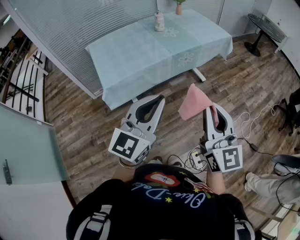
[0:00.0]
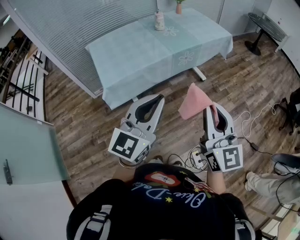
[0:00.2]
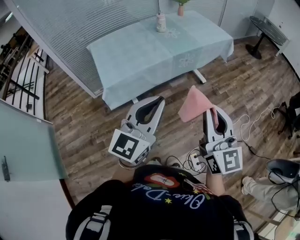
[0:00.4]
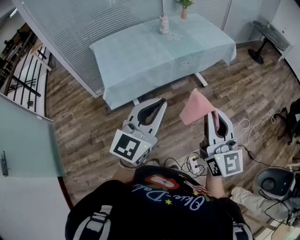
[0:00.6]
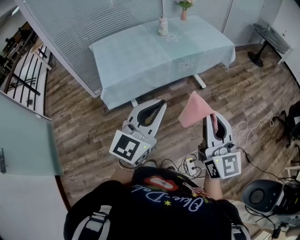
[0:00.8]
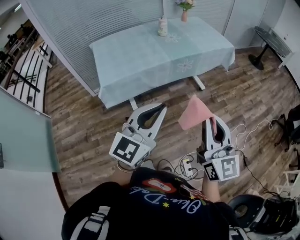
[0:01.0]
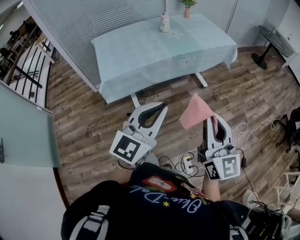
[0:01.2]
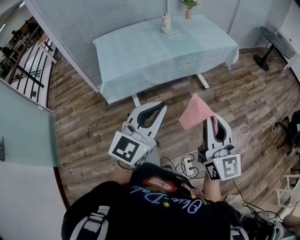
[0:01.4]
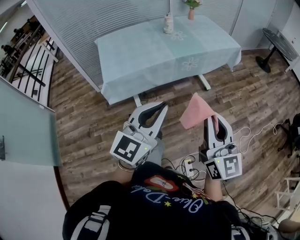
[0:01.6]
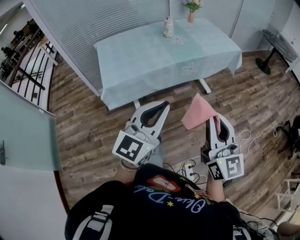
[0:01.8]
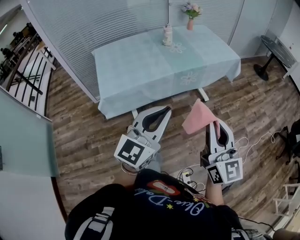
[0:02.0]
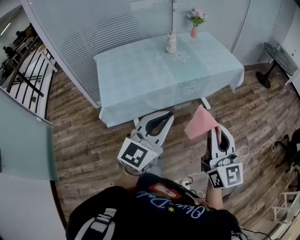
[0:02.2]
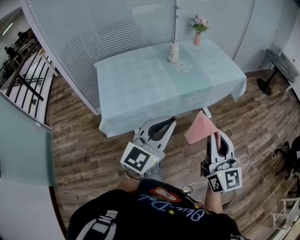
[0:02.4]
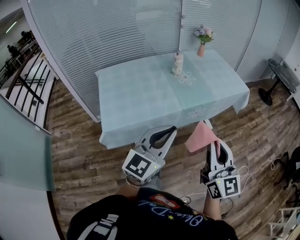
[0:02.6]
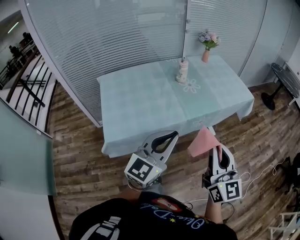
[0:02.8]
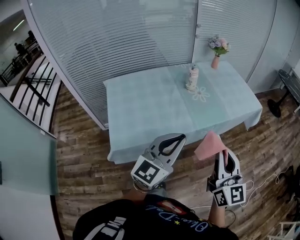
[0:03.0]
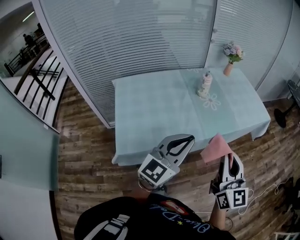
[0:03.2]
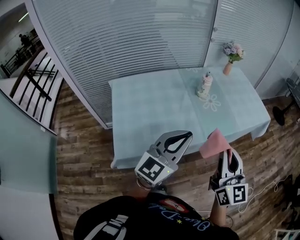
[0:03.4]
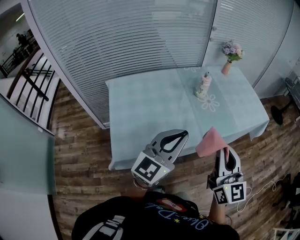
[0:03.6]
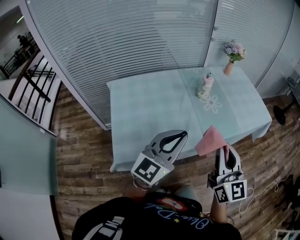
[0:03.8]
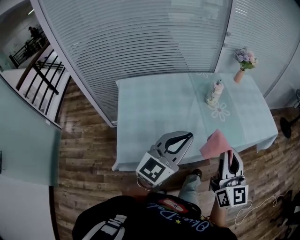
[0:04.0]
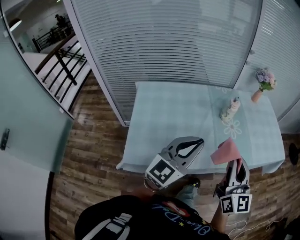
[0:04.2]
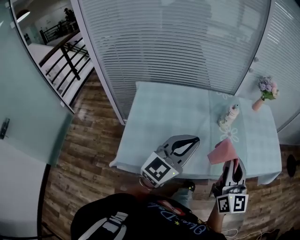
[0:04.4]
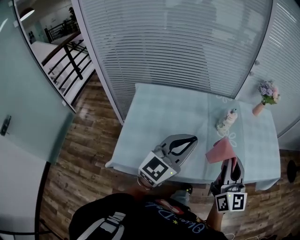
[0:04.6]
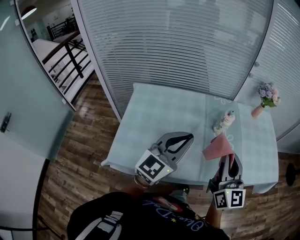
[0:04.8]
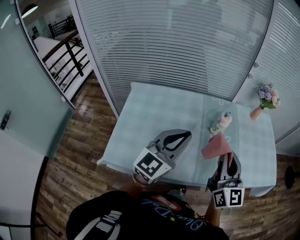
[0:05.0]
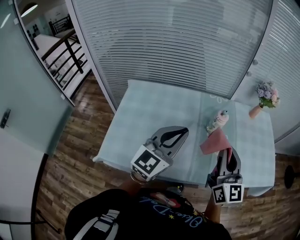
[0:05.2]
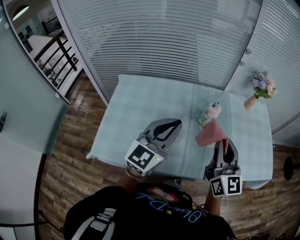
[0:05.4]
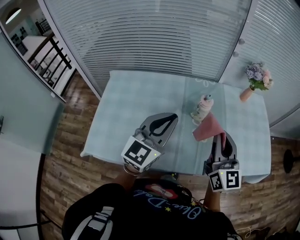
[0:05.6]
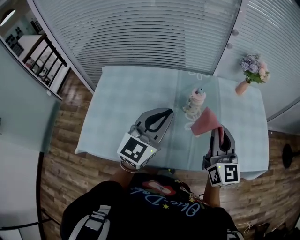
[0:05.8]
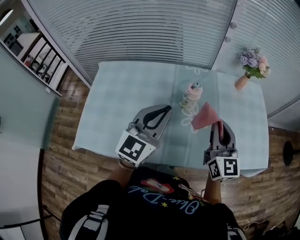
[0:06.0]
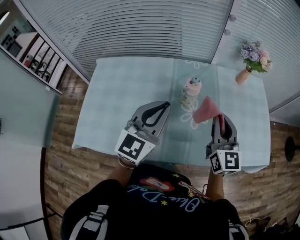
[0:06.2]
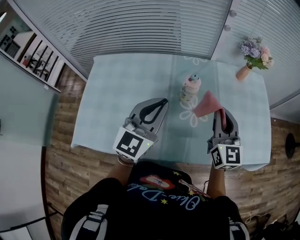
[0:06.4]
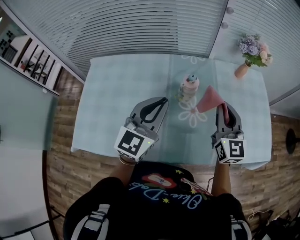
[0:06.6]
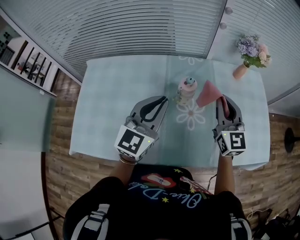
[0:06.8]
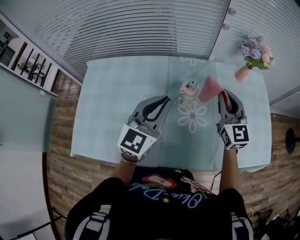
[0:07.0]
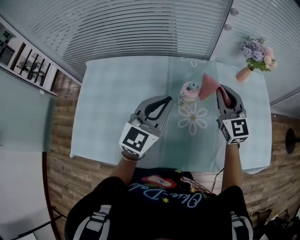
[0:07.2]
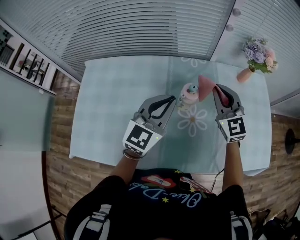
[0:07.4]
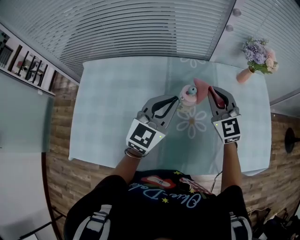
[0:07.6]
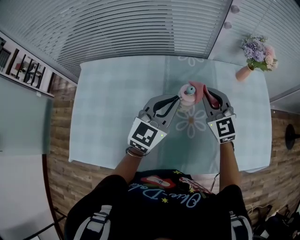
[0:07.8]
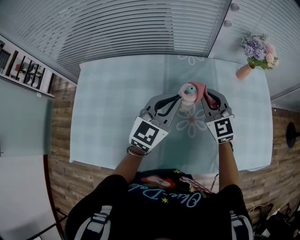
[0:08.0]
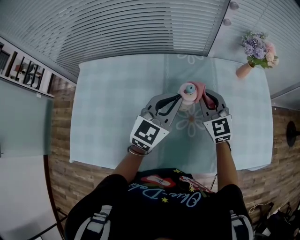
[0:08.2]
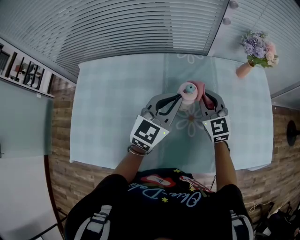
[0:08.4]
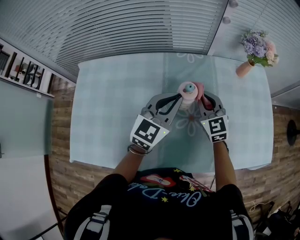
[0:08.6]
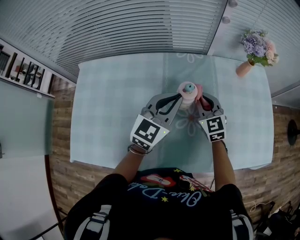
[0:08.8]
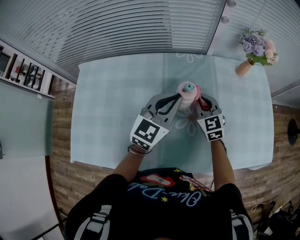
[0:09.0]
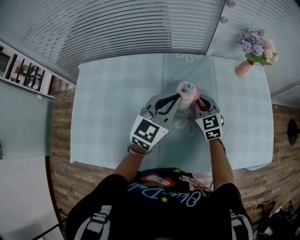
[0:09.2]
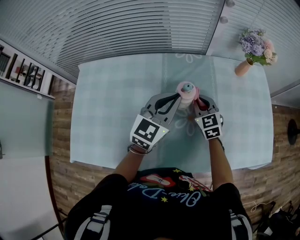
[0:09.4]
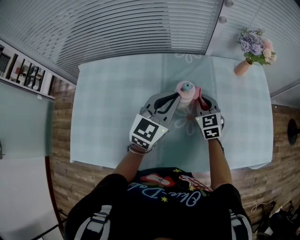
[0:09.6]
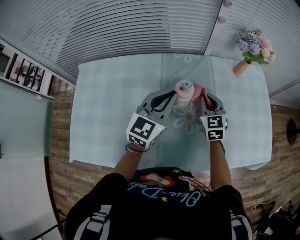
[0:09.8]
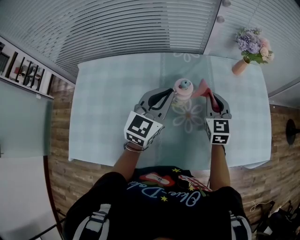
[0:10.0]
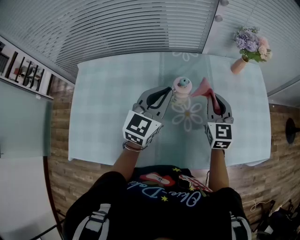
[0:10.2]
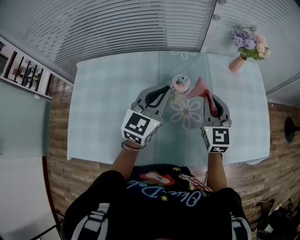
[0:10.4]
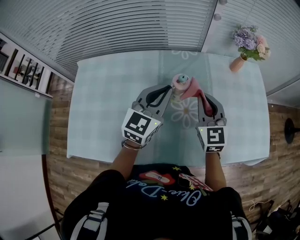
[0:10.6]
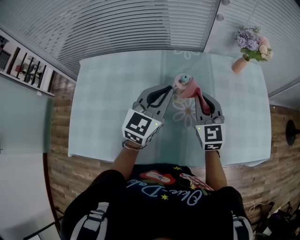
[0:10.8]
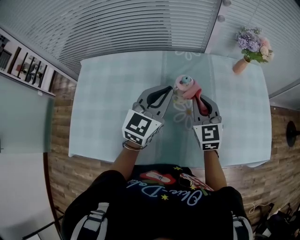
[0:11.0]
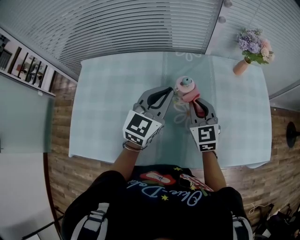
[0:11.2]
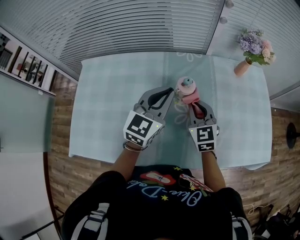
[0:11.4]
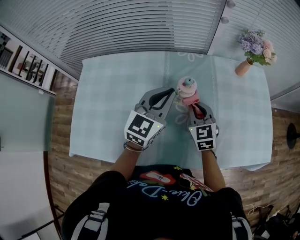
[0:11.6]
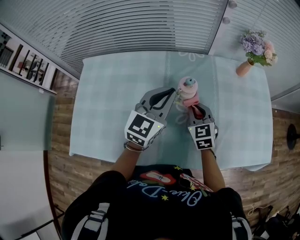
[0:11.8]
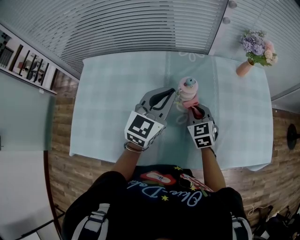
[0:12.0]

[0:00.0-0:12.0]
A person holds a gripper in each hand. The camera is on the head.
0:00.0 to 0:01.6: The grippers both shift to the right by roughly 5 cm.
0:01.6 to 0:03.0: The grippers both shift forward by approximately 30 cm.
0:03.0 to 0:04.4: The left gripper heads forward and to the left, covering approximately 20 cm; the right gripper moves forward, roughly 20 cm.
0:04.4 to 0:06.0: The grippers both shift forward and to the right by about 20 cm.
0:06.0 to 0:07.6: The left gripper moves forward and downward, roughly 15 cm. Meanwhile the right gripper moves forward, approximately 15 cm, and turns by about 30 degrees.
0:07.6 to 0:09.0: The right gripper heads downward, covering approximately 10 cm.
0:09.0 to 0:10.4: The right gripper shifts roughly 10 cm upward and to the right.
0:10.4 to 0:12.0: The right gripper shifts some 15 cm downward and to the left, and turns by roughly 20 degrees.

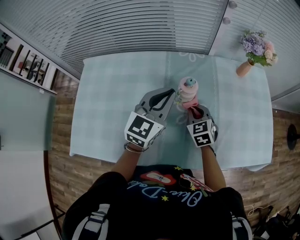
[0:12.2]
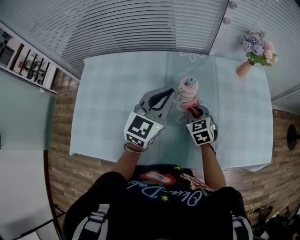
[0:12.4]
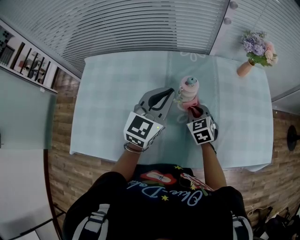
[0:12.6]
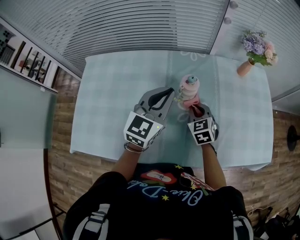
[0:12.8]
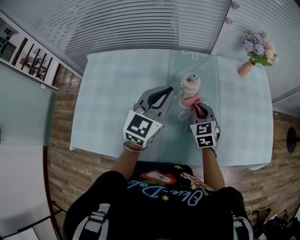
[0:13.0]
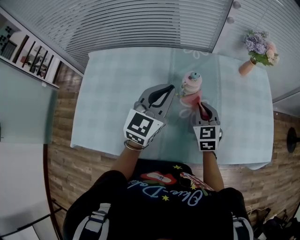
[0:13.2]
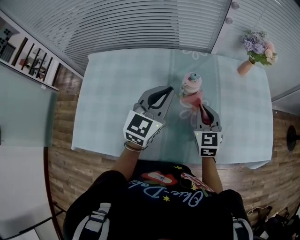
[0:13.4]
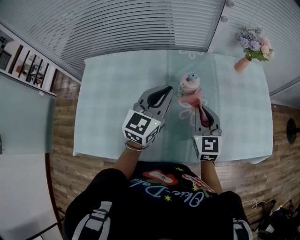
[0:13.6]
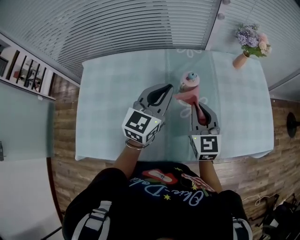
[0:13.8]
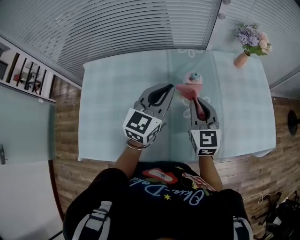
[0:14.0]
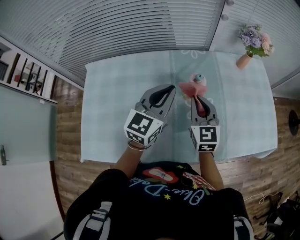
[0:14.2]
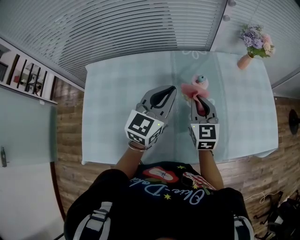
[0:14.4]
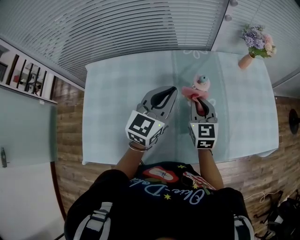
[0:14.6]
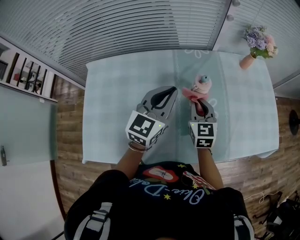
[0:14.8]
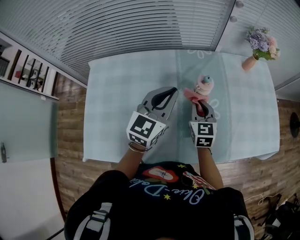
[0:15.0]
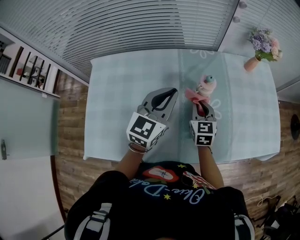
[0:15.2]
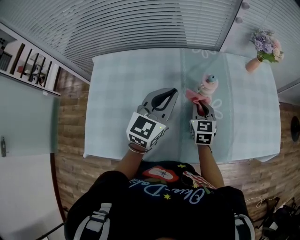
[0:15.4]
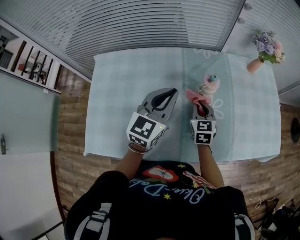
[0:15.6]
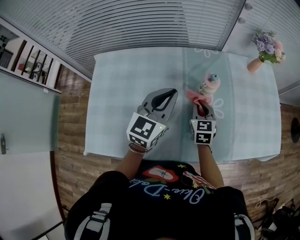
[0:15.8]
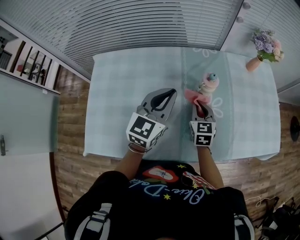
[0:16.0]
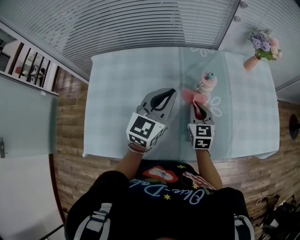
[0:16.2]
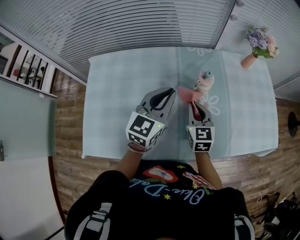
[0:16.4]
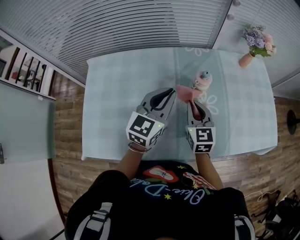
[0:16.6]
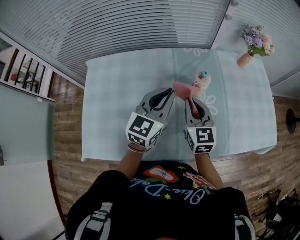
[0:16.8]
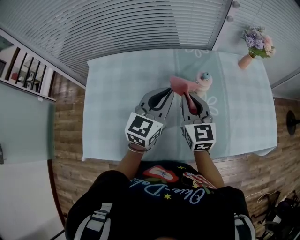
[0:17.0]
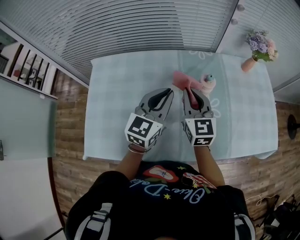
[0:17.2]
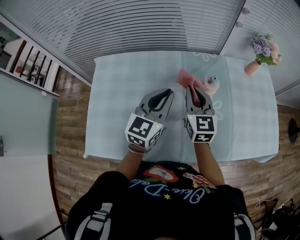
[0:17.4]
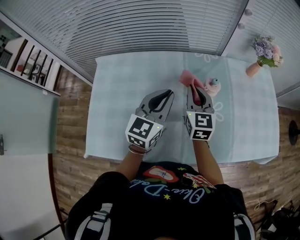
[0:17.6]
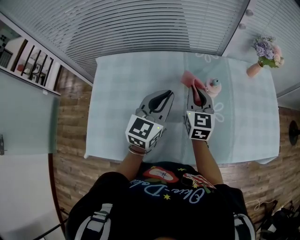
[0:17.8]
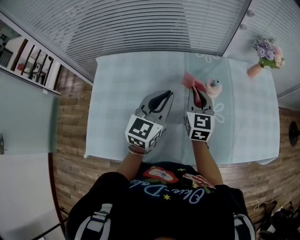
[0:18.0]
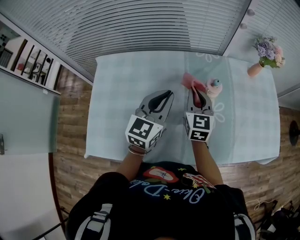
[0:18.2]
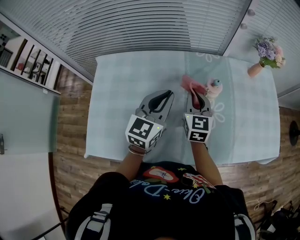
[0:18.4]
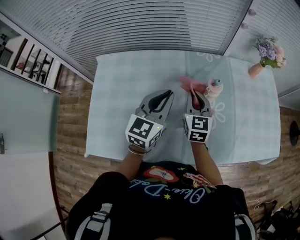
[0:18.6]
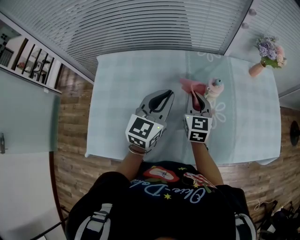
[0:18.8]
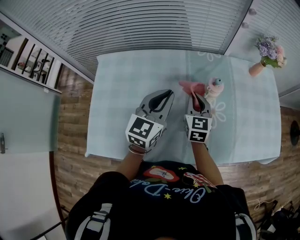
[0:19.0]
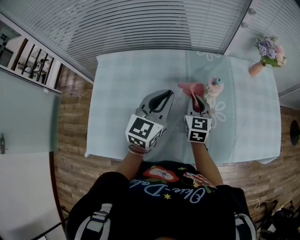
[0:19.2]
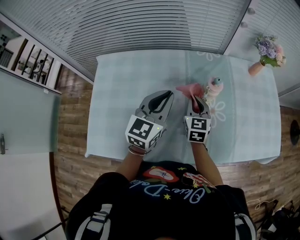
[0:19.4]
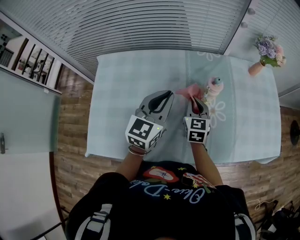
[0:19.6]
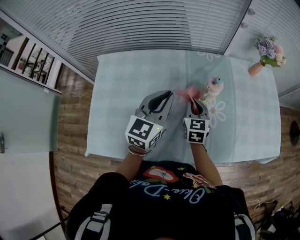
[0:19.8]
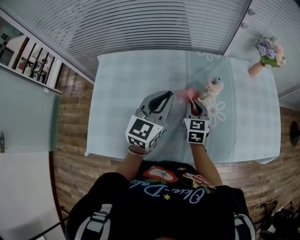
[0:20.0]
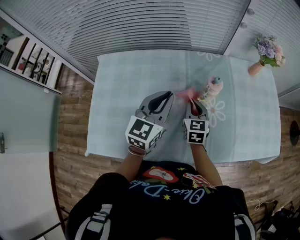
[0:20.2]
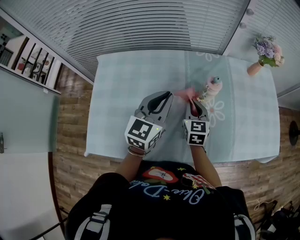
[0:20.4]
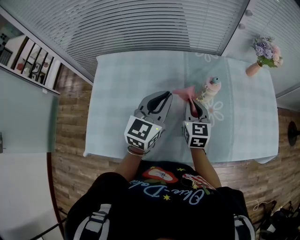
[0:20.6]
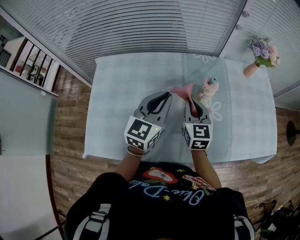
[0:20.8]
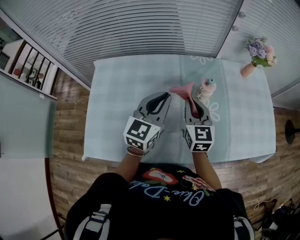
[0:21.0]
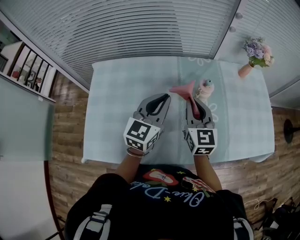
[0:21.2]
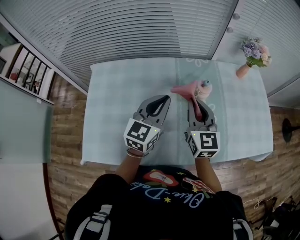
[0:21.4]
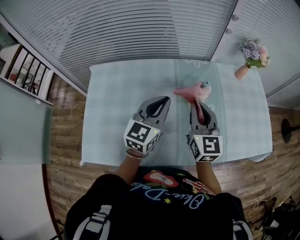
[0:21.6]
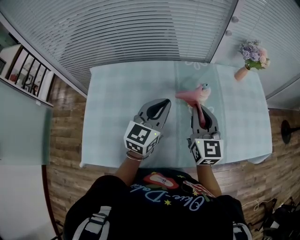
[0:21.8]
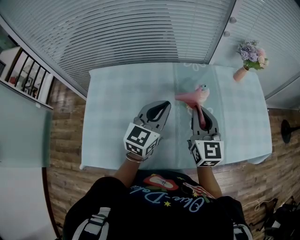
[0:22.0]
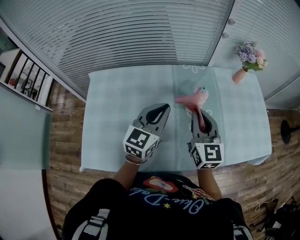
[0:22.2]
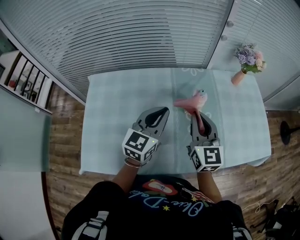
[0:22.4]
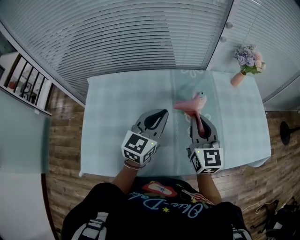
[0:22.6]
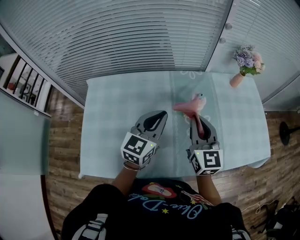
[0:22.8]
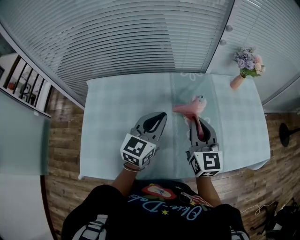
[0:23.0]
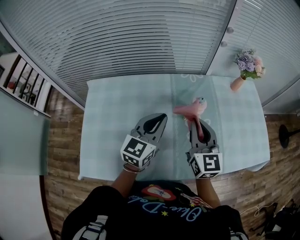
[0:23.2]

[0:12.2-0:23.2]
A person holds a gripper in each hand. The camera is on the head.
0:12.2 to 0:13.8: The right gripper heads upward, covering roughly 15 cm, and rotates roughly 30 degrees.
0:13.8 to 0:15.4: The right gripper goes some 10 cm downward and to the left; the left gripper travels to the left by some 5 cm.
0:15.4 to 0:17.0: The right gripper heads upward, covering roughly 10 cm.
0:17.0 to 0:18.4: The right gripper shifts by some 5 cm.
0:18.4 to 0:20.0: The right gripper is displaced downward by roughly 10 cm.
0:20.0 to 0:21.6: The right gripper is displaced upward by some 15 cm, and swivels some 20 degrees.
0:21.6 to 0:23.2: The grippers move only a little.

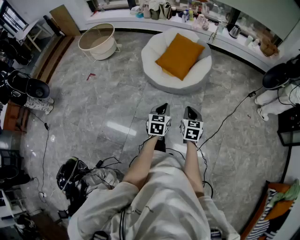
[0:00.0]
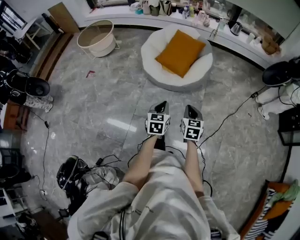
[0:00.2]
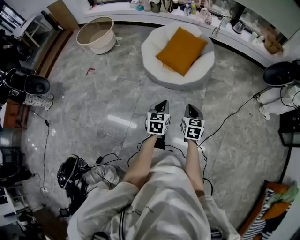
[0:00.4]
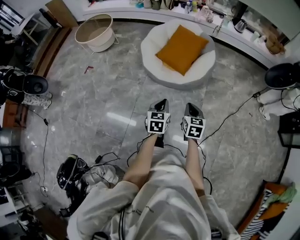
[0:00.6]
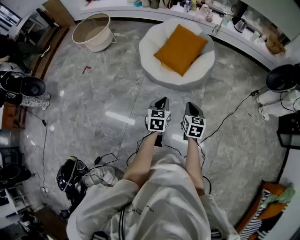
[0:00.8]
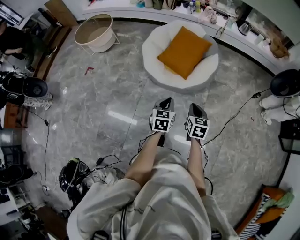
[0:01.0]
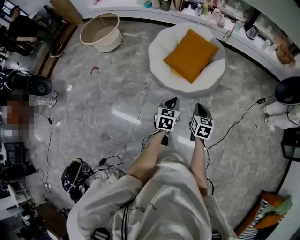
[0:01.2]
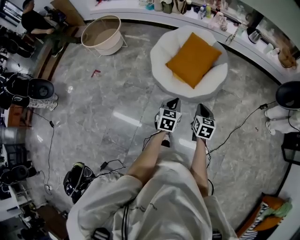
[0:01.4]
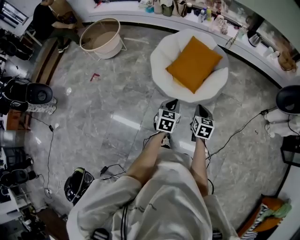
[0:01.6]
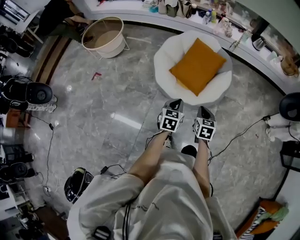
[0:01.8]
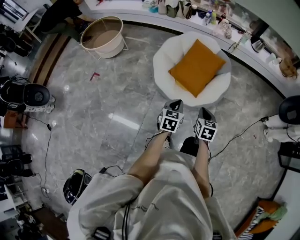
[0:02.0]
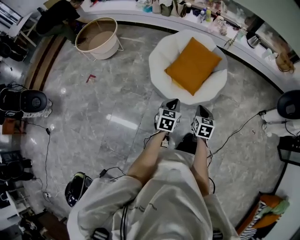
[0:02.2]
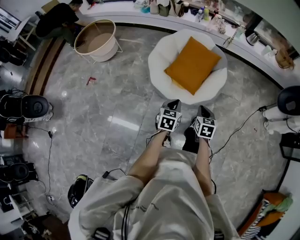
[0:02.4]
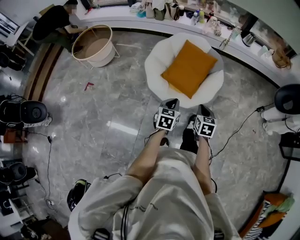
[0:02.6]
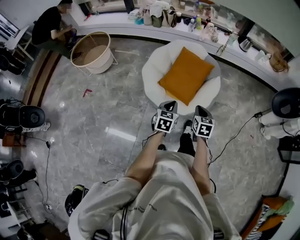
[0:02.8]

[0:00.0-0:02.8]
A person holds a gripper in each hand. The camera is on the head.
0:00.0 to 0:01.4: The grippers both shift forward by approximately 25 cm.
0:01.4 to 0:02.8: The grippers both shift forward by about 15 cm.
